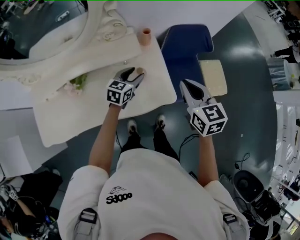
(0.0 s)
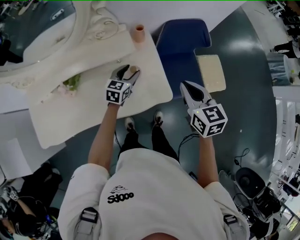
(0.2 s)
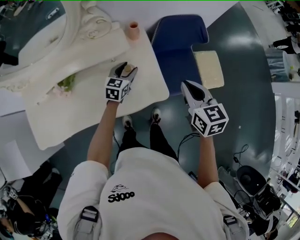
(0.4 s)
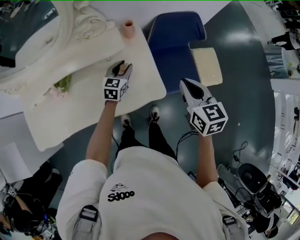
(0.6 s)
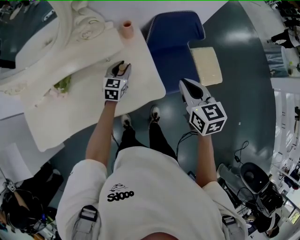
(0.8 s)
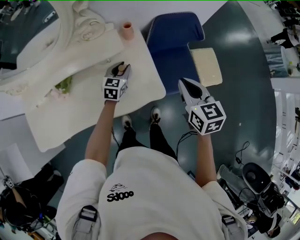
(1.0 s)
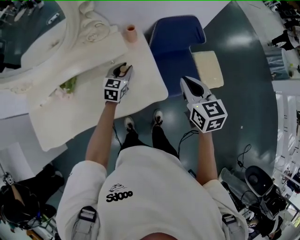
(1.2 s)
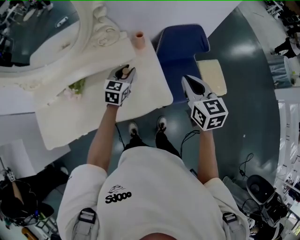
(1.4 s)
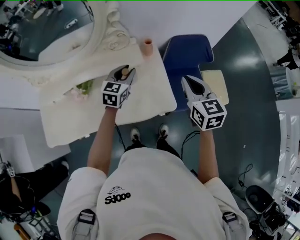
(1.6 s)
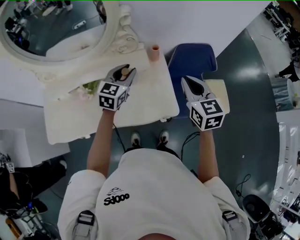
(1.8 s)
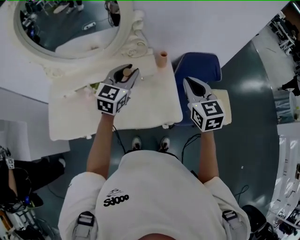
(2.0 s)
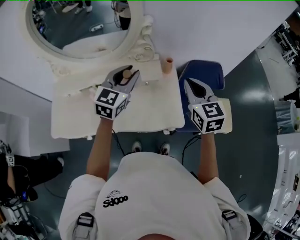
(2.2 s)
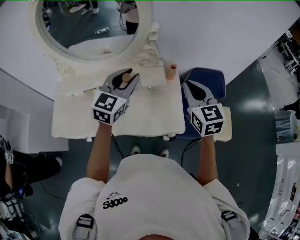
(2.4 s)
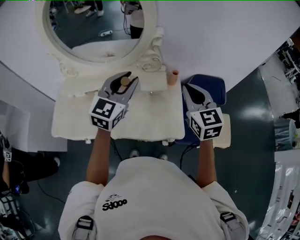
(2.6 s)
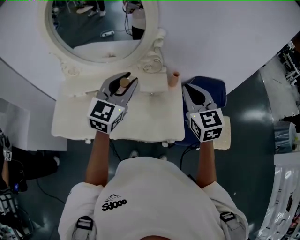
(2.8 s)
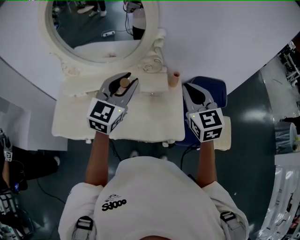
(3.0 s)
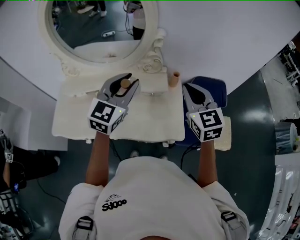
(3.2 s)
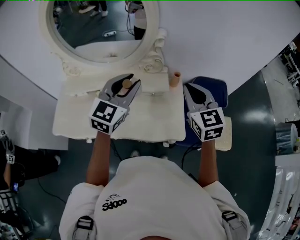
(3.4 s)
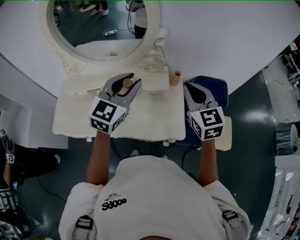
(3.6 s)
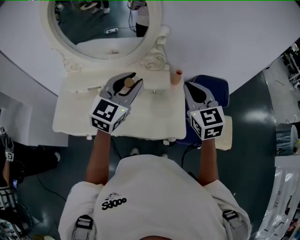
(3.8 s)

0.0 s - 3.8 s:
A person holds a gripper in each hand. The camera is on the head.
0.0 s - 1.2 s: The left gripper closes its fingers; the right gripper travels to the right by about 5 cm.
1.2 s - 2.6 s: The right gripper goes roughly 20 cm upward and to the left, and swivels roughly 30 degrees. Meanwhile the left gripper goes roughly 35 cm upward and to the left, and turns by roughly 30 degrees.
2.6 s - 3.8 s: There are only small adjustments of the grippers.

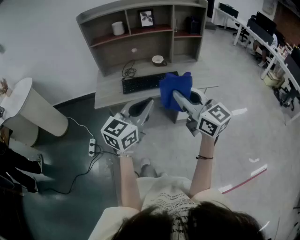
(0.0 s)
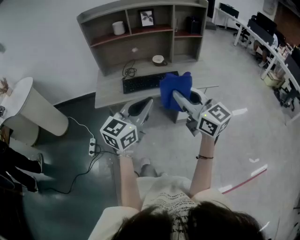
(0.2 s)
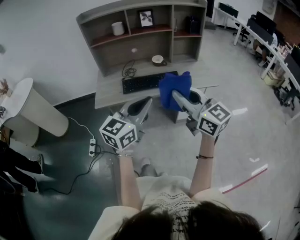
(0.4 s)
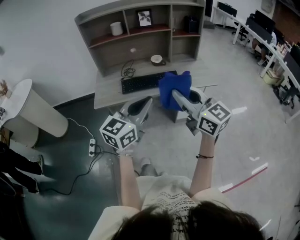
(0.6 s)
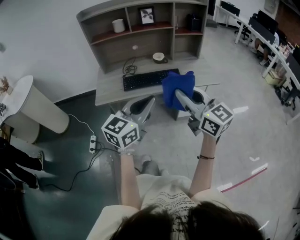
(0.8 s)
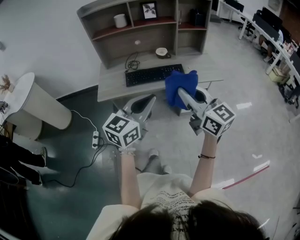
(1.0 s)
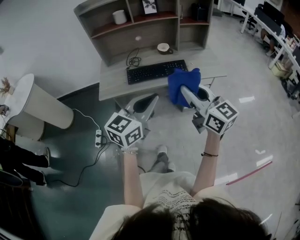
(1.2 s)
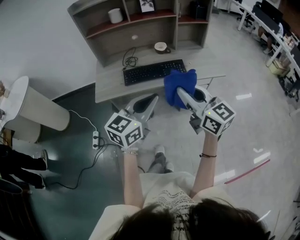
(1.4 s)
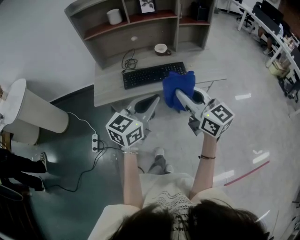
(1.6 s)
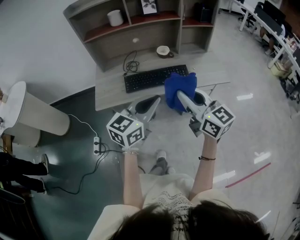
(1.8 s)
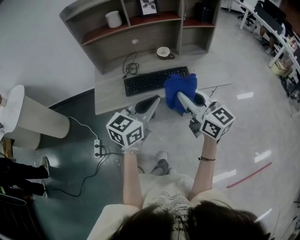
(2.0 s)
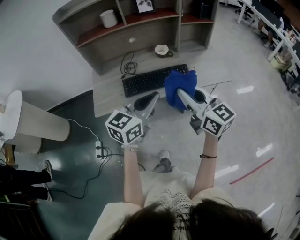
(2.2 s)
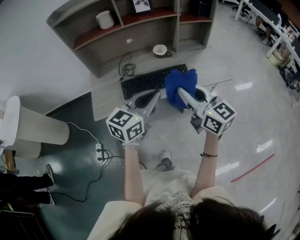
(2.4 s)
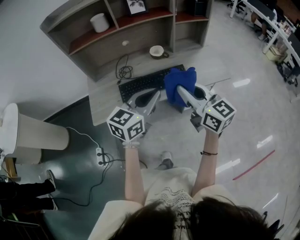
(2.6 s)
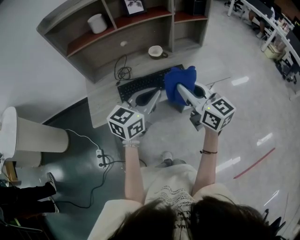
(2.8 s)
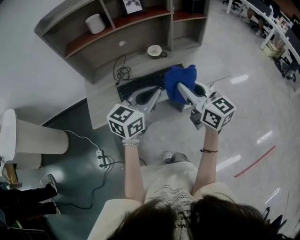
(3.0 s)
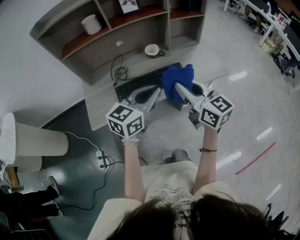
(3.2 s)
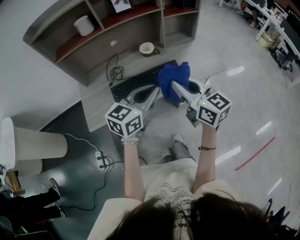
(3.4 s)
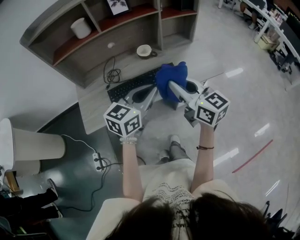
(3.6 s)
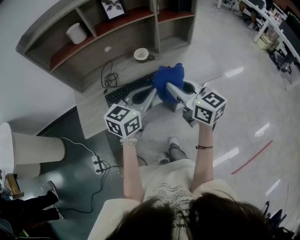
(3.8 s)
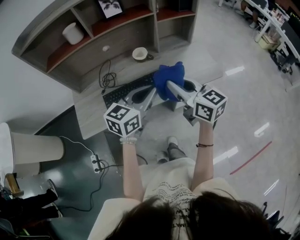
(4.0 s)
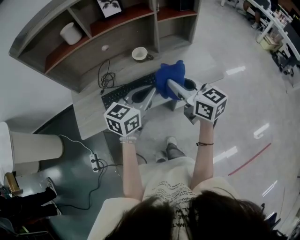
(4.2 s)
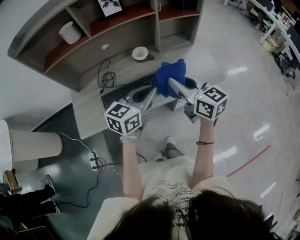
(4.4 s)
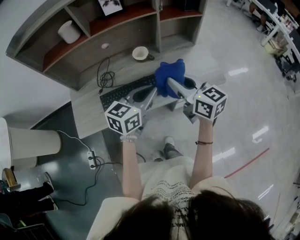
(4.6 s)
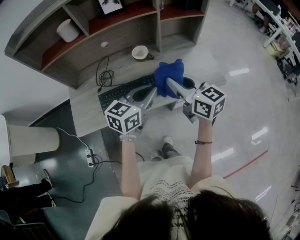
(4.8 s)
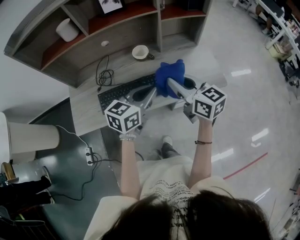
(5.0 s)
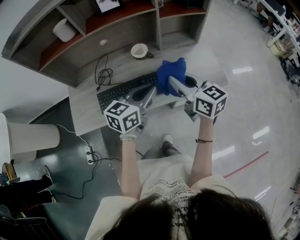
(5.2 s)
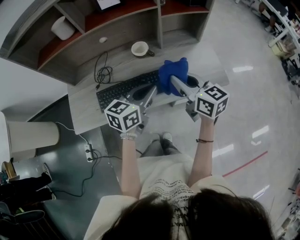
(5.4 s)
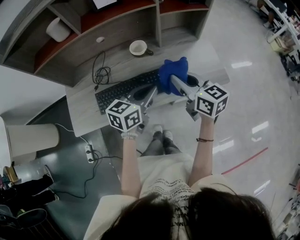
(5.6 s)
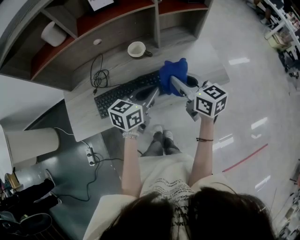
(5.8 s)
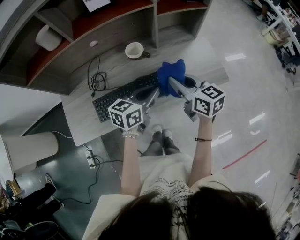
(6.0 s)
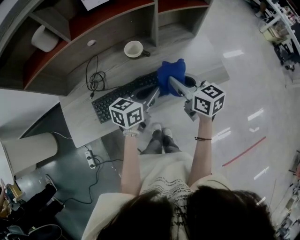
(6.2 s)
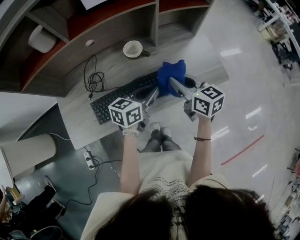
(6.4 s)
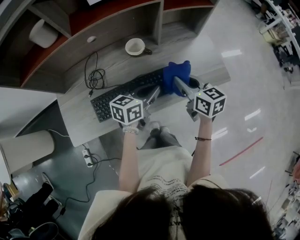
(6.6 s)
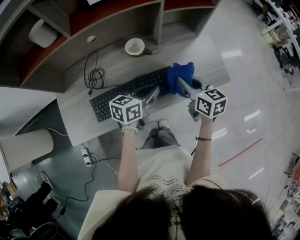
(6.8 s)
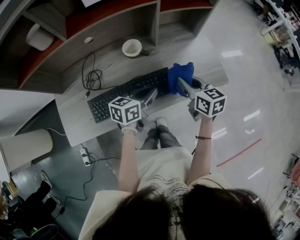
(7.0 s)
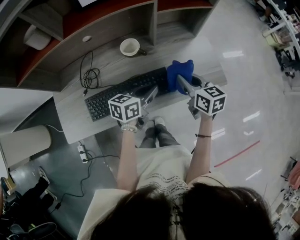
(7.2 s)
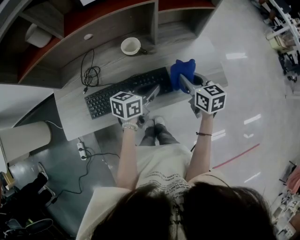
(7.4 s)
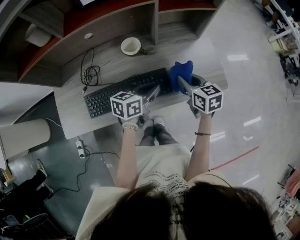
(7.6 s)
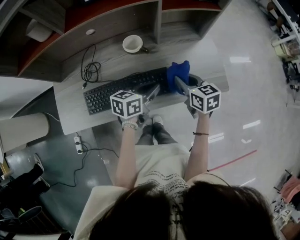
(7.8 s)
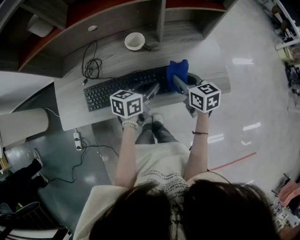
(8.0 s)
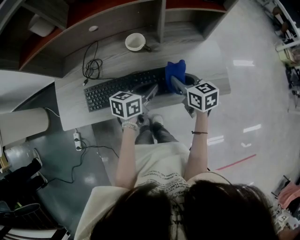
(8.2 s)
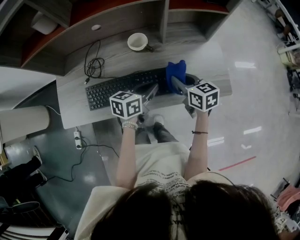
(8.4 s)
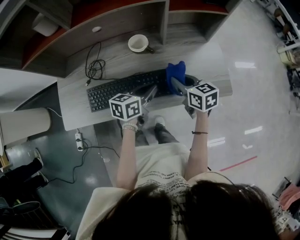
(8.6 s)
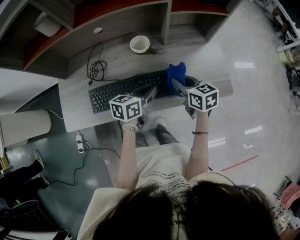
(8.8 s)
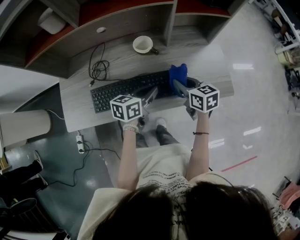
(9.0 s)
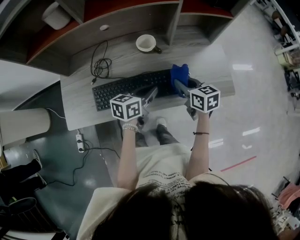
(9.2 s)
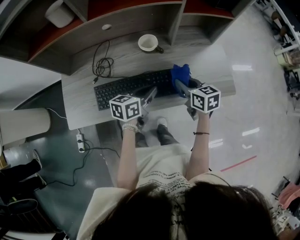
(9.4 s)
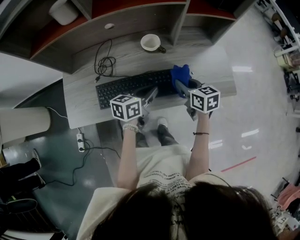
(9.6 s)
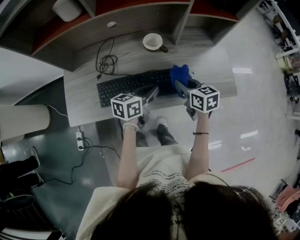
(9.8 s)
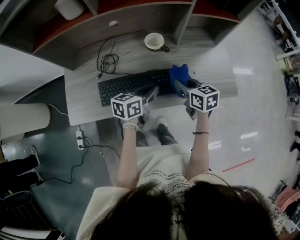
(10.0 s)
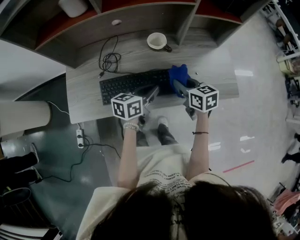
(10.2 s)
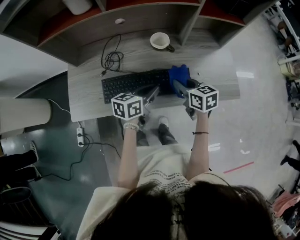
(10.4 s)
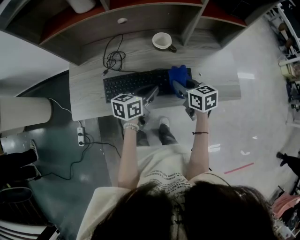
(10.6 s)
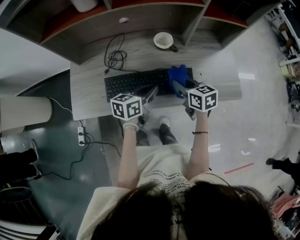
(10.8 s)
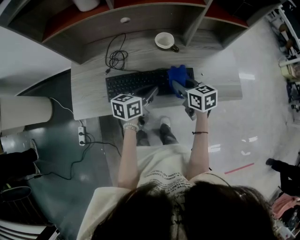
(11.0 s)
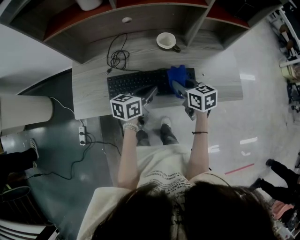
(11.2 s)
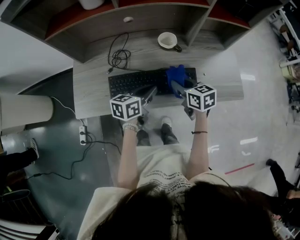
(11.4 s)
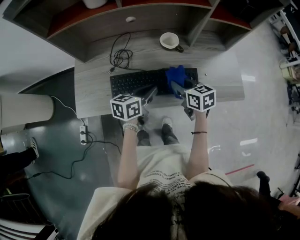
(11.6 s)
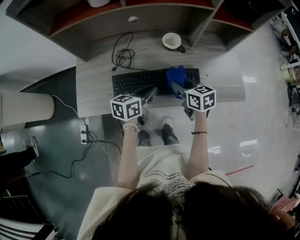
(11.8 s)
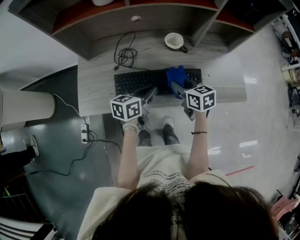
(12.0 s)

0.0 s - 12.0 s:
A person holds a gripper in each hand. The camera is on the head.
0.0 s - 1.6 s: The grippers both shift forward by roughly 10 cm.
1.6 s - 3.0 s: The two grippers go some 15 cm forward.
3.0 s - 4.4 s: Both grippers travel together forward and to the right, approximately 10 cm.
4.4 s - 6.0 s: The left gripper travels downward and forward by roughly 15 cm; the right gripper shifts some 15 cm forward and downward.
6.0 s - 7.6 s: The right gripper moves downward, to the right and forward, about 10 cm; the left gripper travels downward by roughly 5 cm.
7.6 s - 9.0 s: The left gripper changes place by some 5 cm. The right gripper heads to the left, covering some 5 cm.
9.0 s - 10.4 s: Both grippers travel together to the left, roughly 5 cm.
10.4 s - 12.0 s: The grippers both shift to the left by some 5 cm.

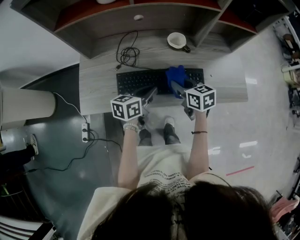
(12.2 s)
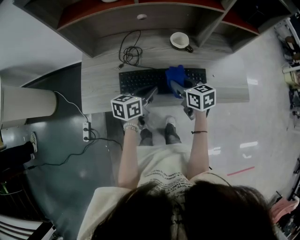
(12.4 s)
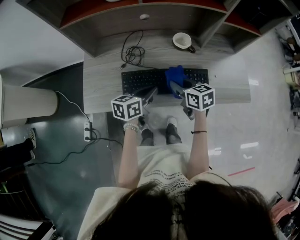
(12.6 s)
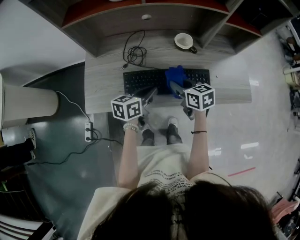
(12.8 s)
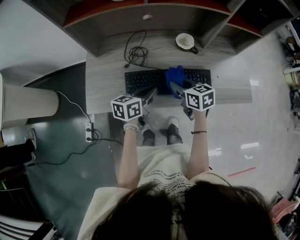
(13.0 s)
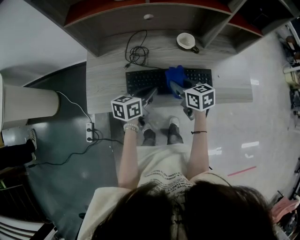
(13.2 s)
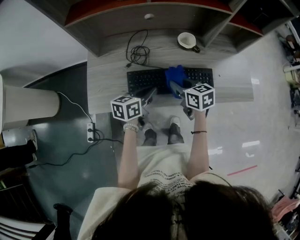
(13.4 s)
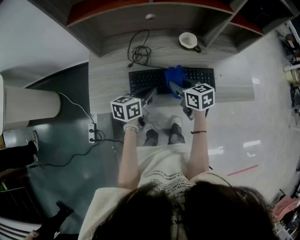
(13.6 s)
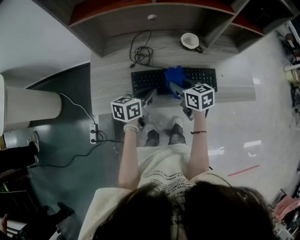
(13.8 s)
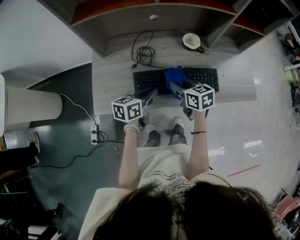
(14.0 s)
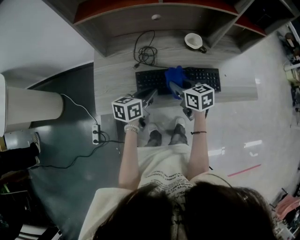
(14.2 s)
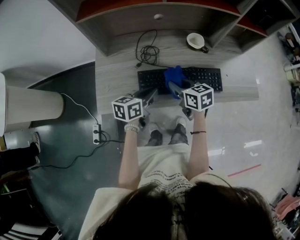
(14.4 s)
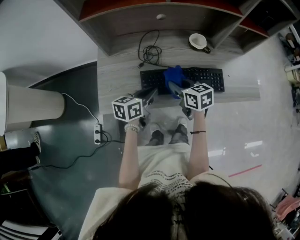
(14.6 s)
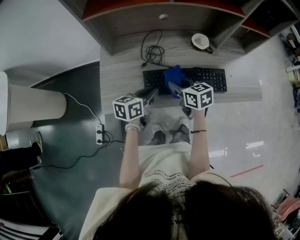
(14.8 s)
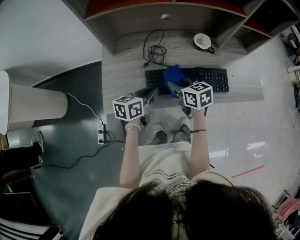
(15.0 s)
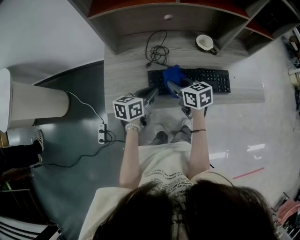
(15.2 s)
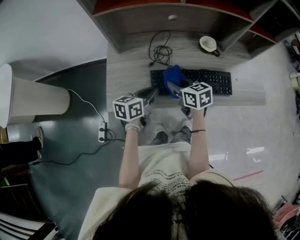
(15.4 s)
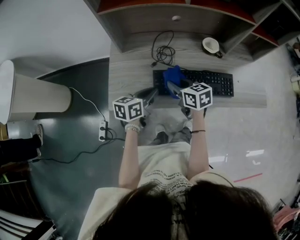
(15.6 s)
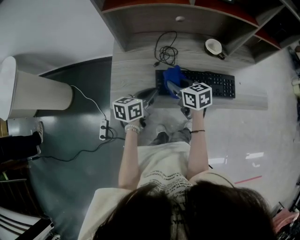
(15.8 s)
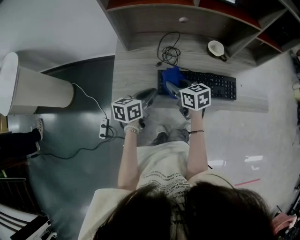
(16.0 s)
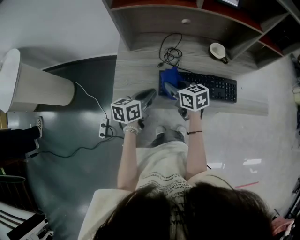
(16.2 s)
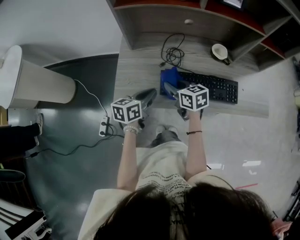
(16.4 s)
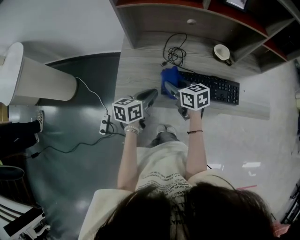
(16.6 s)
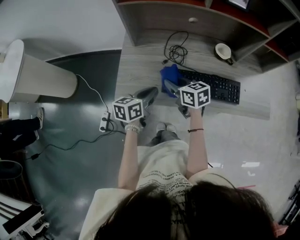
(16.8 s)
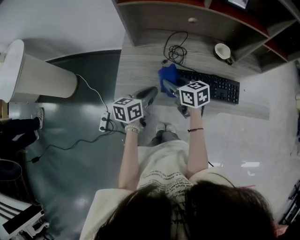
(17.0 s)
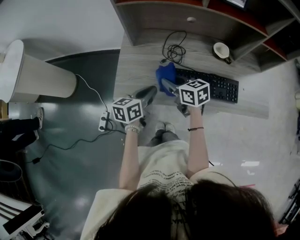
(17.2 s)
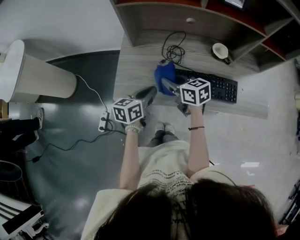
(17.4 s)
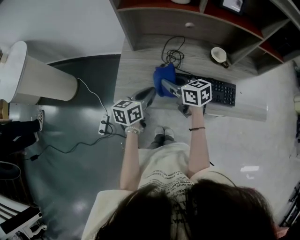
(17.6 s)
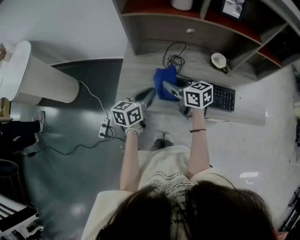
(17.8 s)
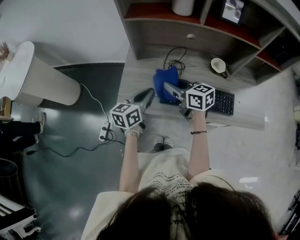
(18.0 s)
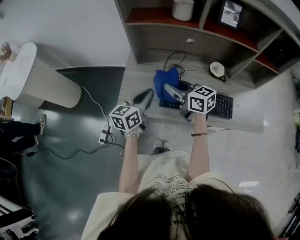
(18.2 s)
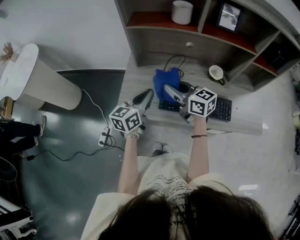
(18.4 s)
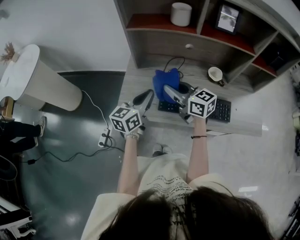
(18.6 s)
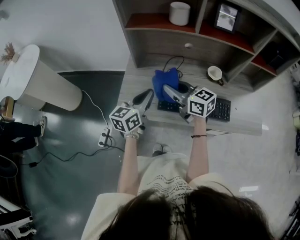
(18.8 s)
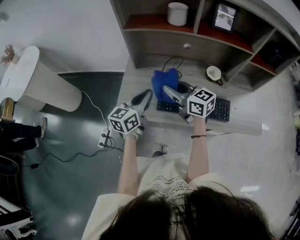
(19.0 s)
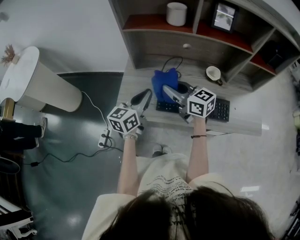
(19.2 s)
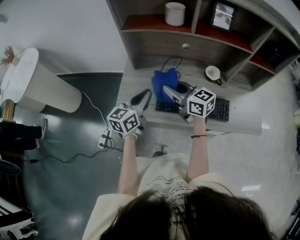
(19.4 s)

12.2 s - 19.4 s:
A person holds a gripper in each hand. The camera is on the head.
12.2 s - 13.6 s: The two grippers go roughly 5 cm to the left.
13.6 s - 15.0 s: The grippers both shift to the left by about 10 cm.
15.0 s - 16.6 s: The two grippers go some 10 cm to the left.
16.6 s - 18.0 s: Both grippers travel together upward, about 10 cm.
18.0 s - 19.4 s: Both grippers travel together upward, about 5 cm.
